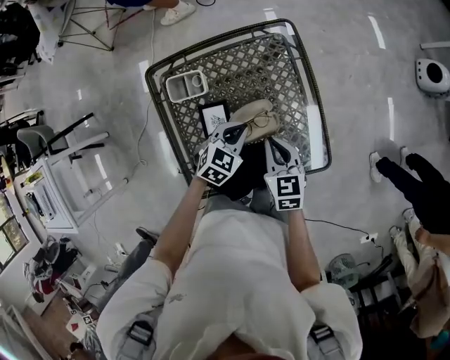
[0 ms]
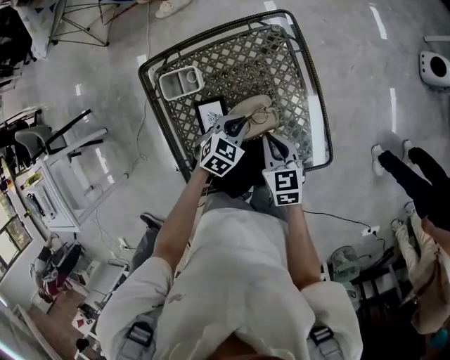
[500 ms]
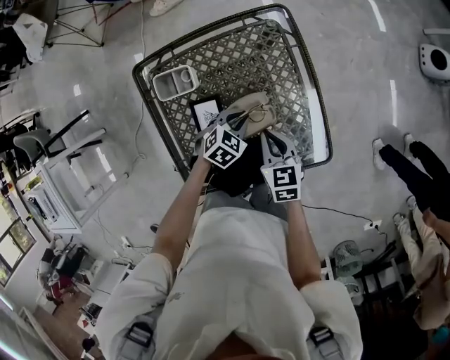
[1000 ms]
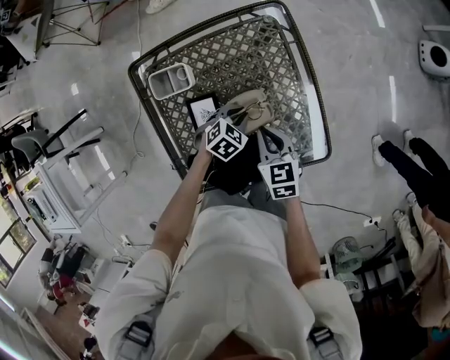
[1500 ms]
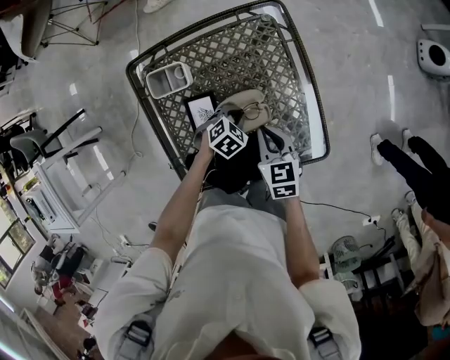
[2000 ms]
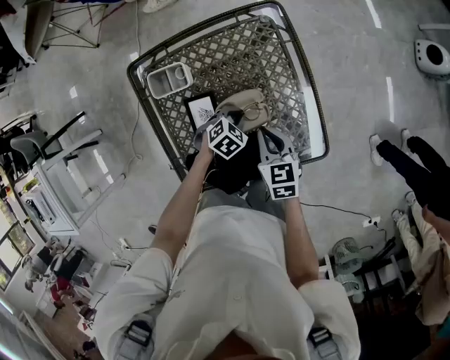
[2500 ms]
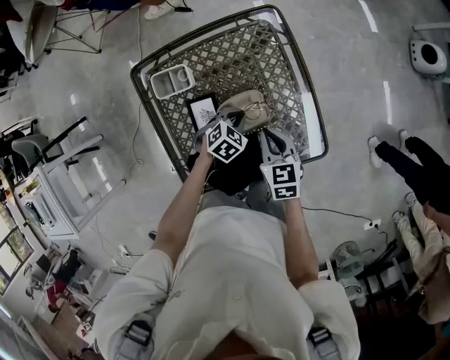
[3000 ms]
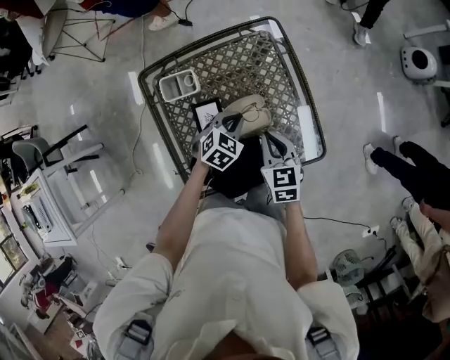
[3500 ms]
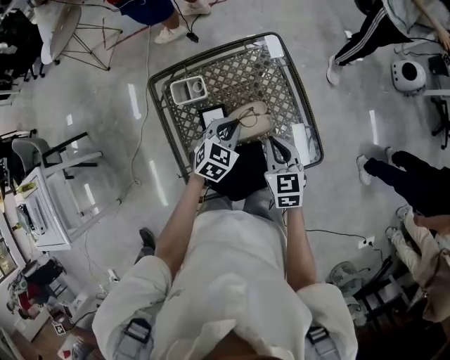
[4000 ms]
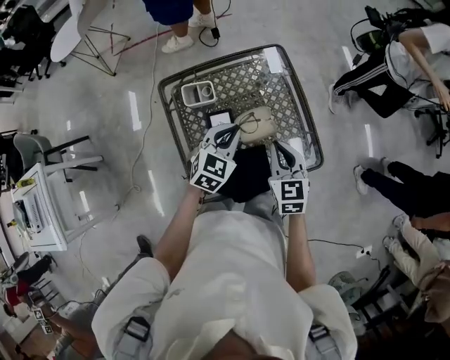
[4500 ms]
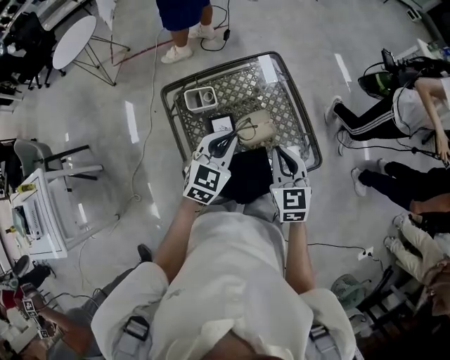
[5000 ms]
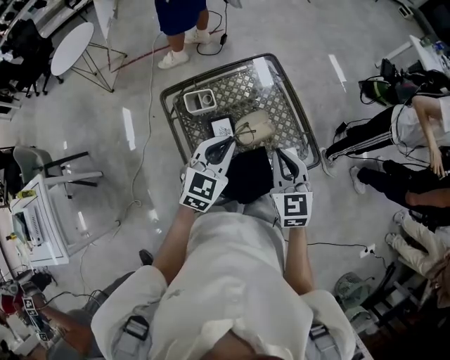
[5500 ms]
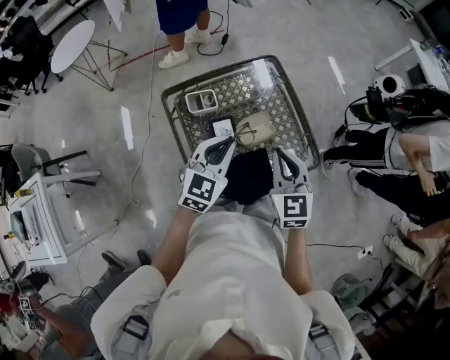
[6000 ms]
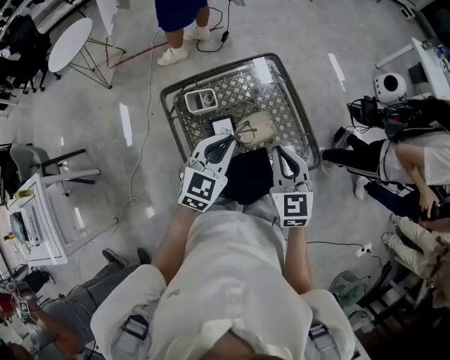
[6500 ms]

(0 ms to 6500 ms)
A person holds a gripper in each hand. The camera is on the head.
0 ms - 2000 ms: The left gripper goes some 15 cm downward, and rotates about 20 degrees.
2000 ms - 4500 ms: The left gripper moves upward, about 25 cm, and tilts its fingers approximately 30 degrees upward. The right gripper heads upward, covering roughly 15 cm, and swivels about 20 degrees.
4500 ms - 6500 ms: The two grippers go roughly 10 cm upward.

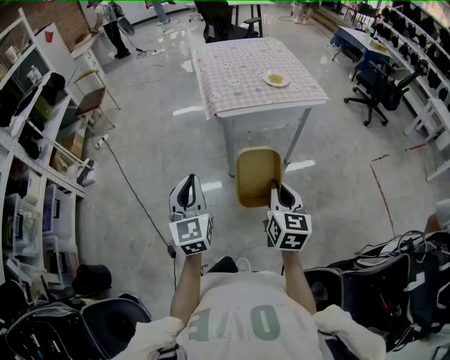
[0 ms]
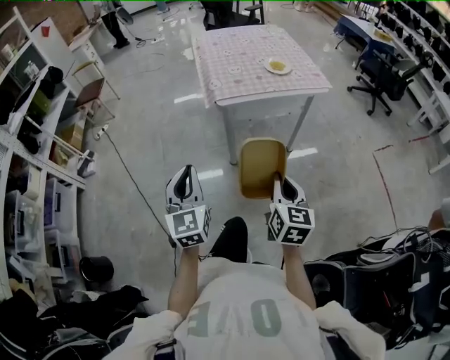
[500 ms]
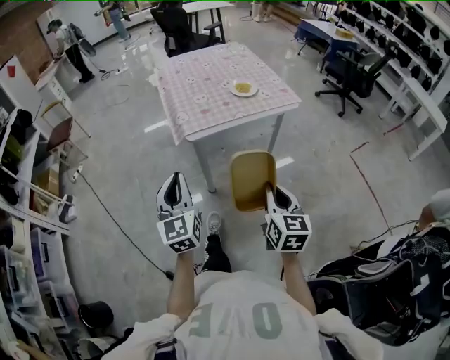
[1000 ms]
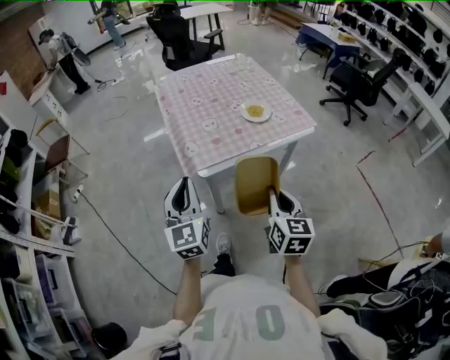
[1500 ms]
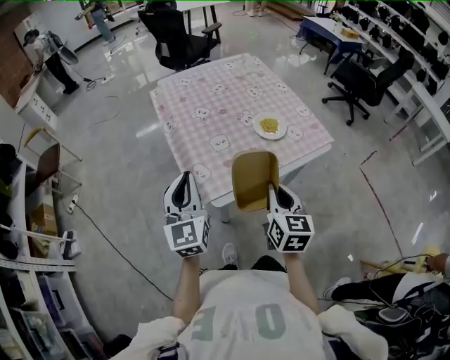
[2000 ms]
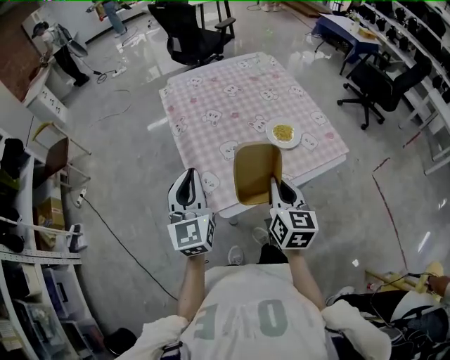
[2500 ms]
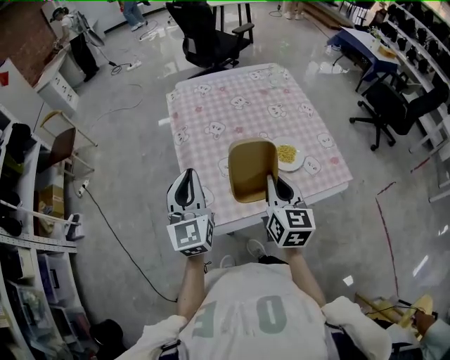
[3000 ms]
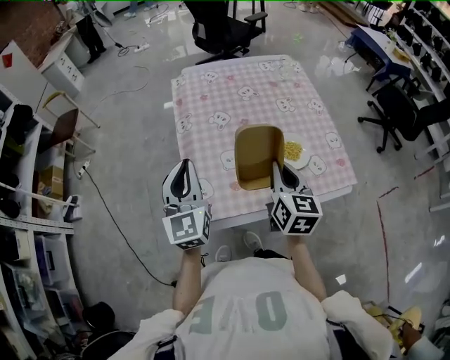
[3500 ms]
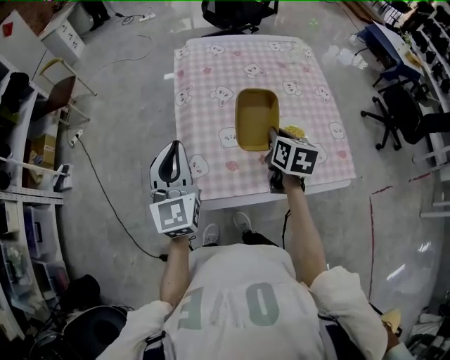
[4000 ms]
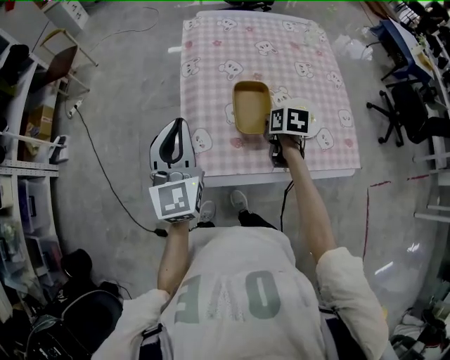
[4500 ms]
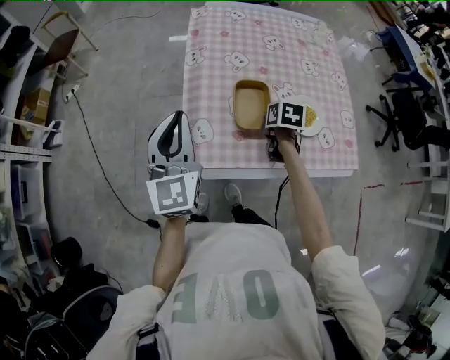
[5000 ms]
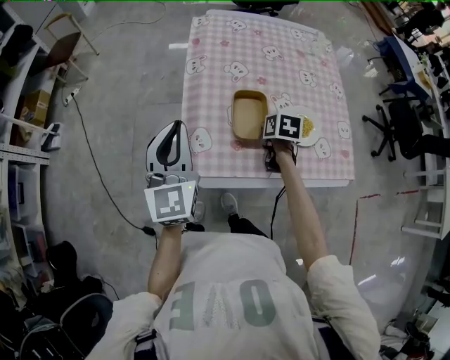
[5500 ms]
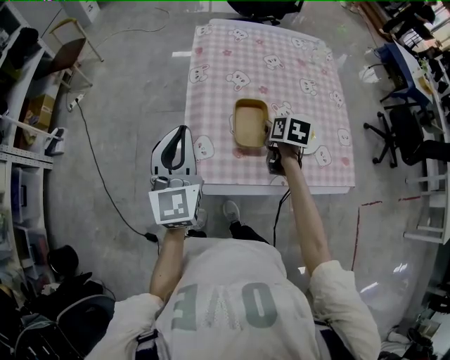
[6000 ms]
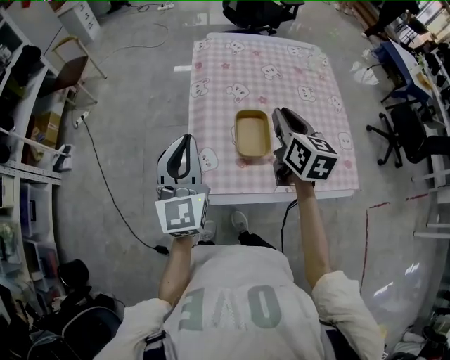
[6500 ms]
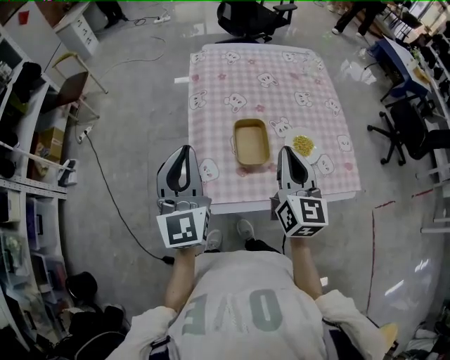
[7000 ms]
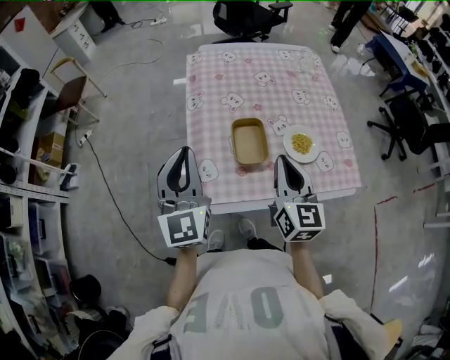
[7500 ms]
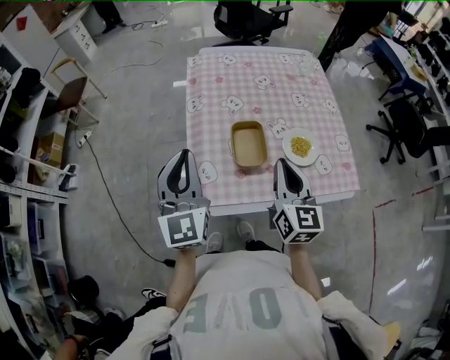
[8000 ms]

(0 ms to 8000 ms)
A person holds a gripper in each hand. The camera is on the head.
0 ms - 2000 ms: The two grippers go some 40 cm forward.
2000 ms - 4000 ms: The left gripper travels forward by some 10 cm; the right gripper travels forward by some 25 cm, and changes its angle by roughly 30 degrees.
4000 ms - 6000 ms: The right gripper goes about 10 cm downward, and opens up.
6000 ms - 8000 ms: The right gripper moves upward and backward, approximately 20 cm, tilts its fingers about 40 degrees upward, and closes up.

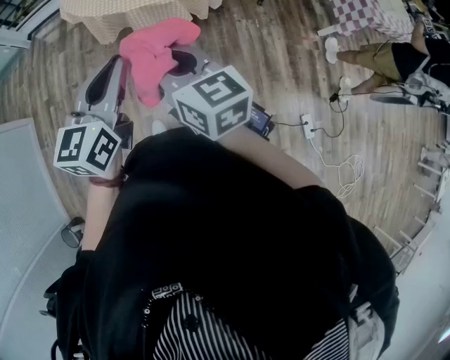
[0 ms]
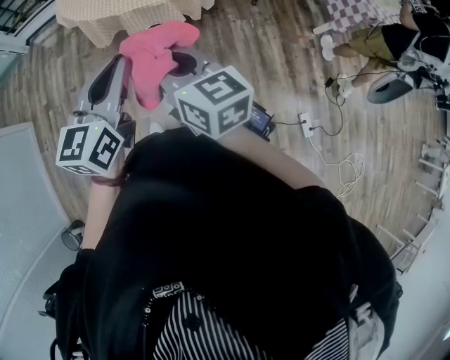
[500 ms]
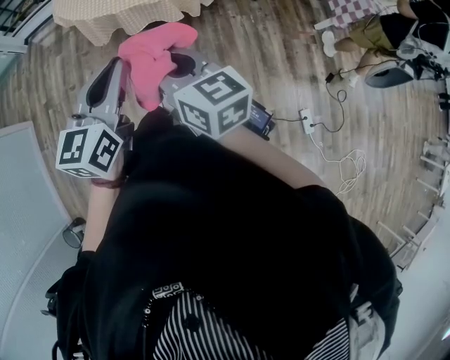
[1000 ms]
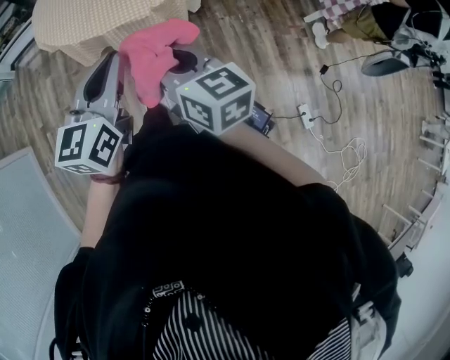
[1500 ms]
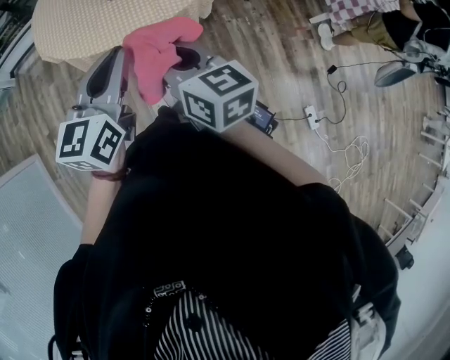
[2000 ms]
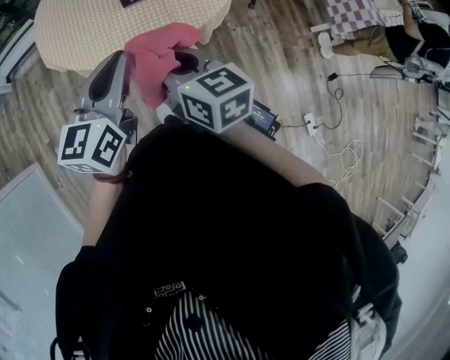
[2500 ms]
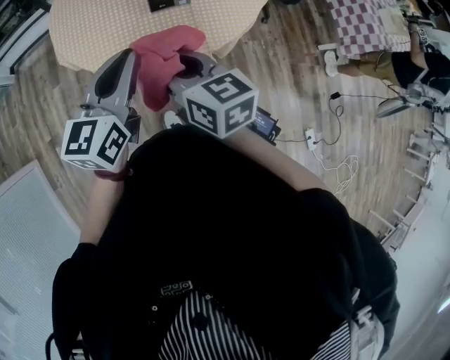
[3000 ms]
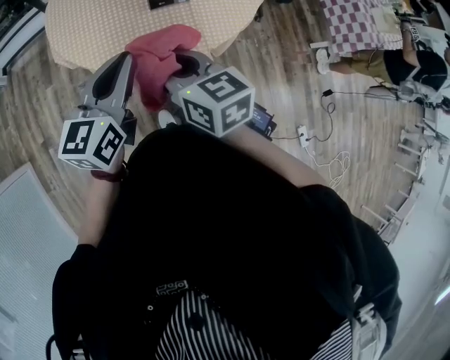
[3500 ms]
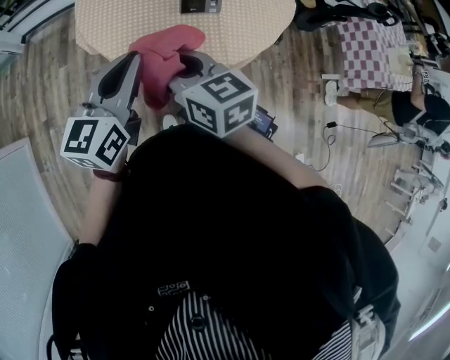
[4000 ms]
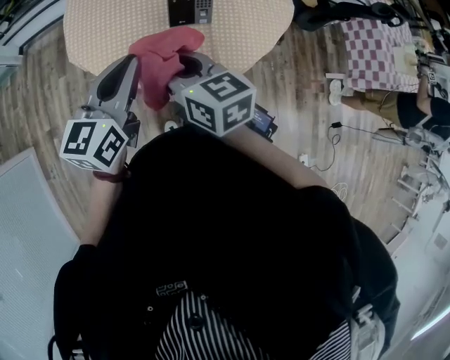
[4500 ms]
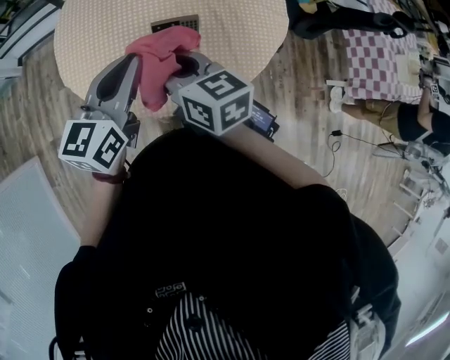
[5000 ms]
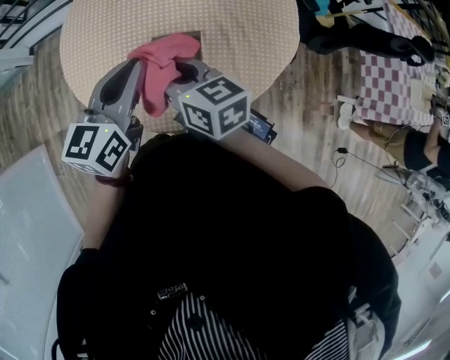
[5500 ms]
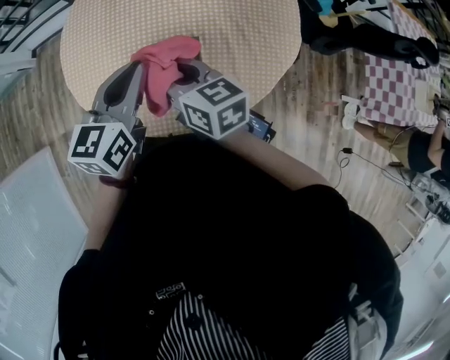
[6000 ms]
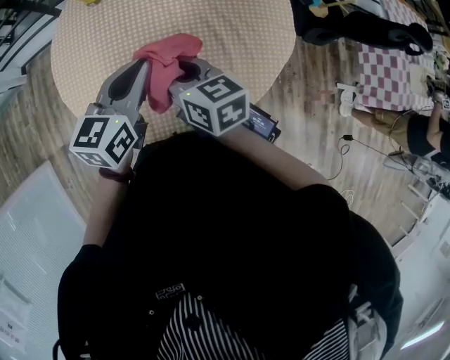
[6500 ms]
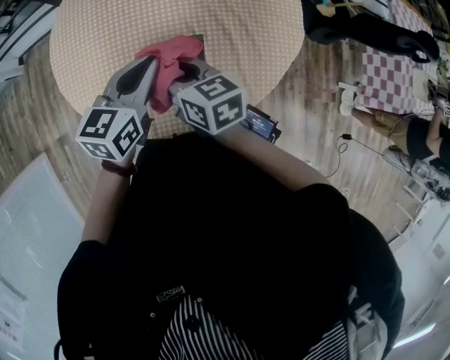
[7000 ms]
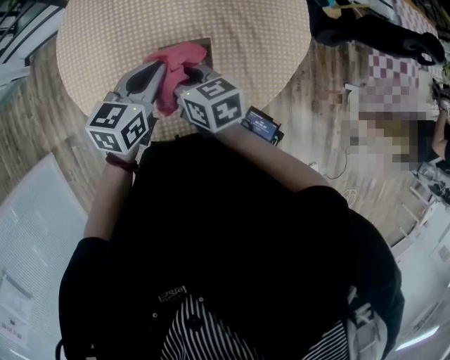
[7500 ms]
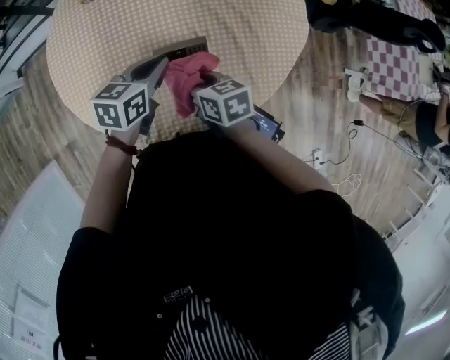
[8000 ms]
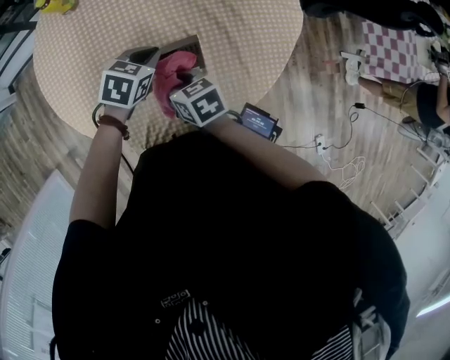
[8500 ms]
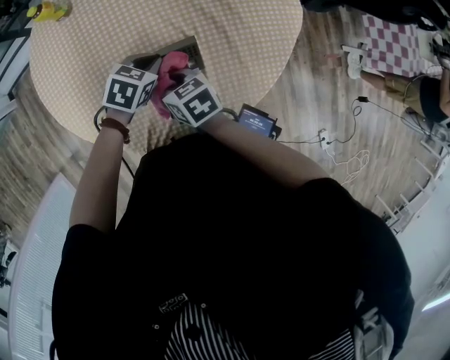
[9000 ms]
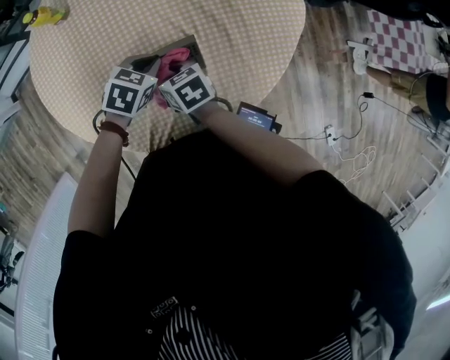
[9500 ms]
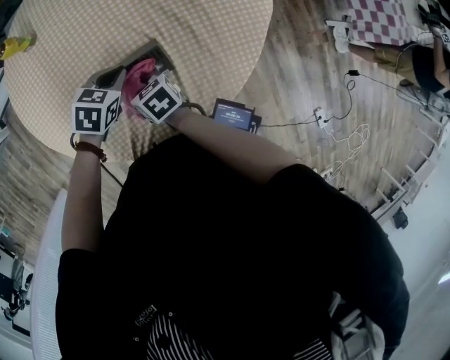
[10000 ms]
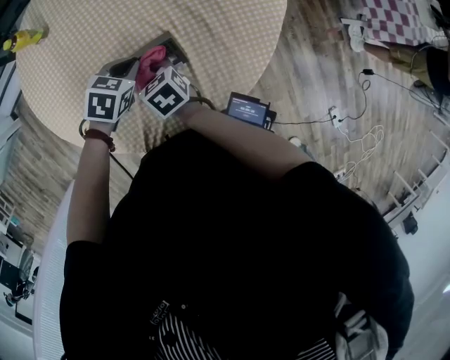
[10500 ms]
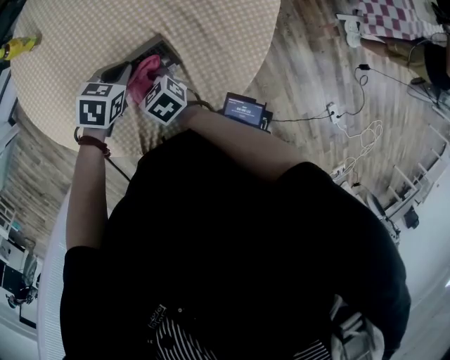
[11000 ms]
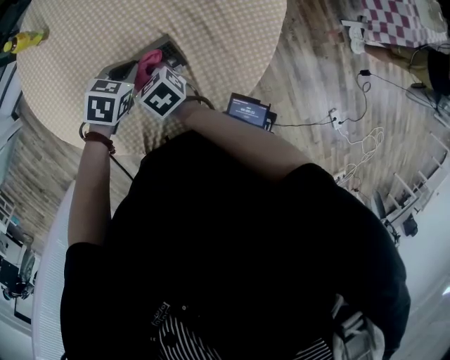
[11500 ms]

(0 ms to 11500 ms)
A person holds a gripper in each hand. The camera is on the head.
0 ms - 2000 ms: Both grippers travel together forward, about 25 cm.
2000 ms - 4000 ms: The two grippers go approximately 35 cm to the left and forward.
4000 ms - 6000 ms: Both grippers travel together forward and to the right, approximately 35 cm.
6000 ms - 7500 ms: The right gripper goes roughly 10 cm downward and to the left, while the left gripper travels downward by roughly 10 cm.
7500 ms - 9500 ms: Both grippers travel together downward, some 20 cm. The left gripper swivels approximately 40 degrees.
9500 ms - 11500 ms: The grippers move only a little.

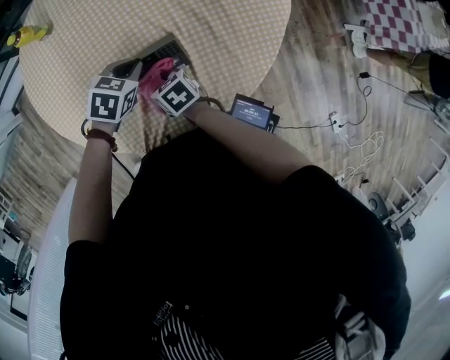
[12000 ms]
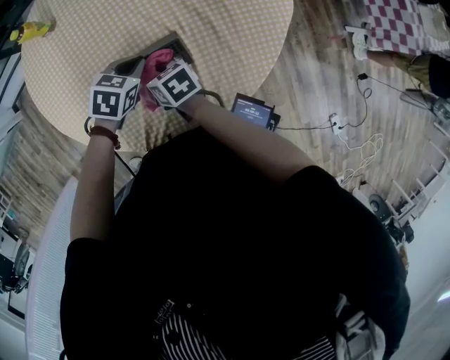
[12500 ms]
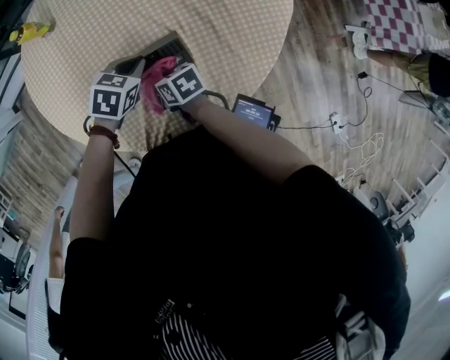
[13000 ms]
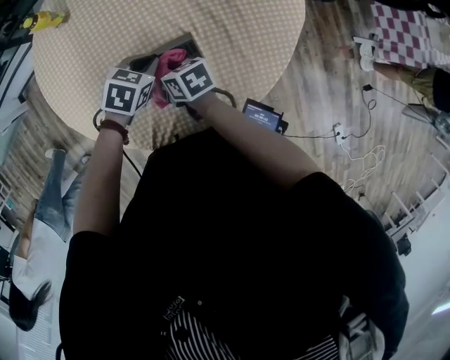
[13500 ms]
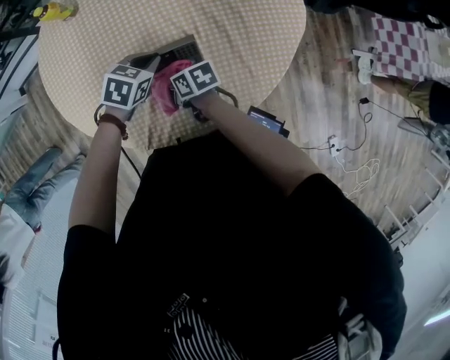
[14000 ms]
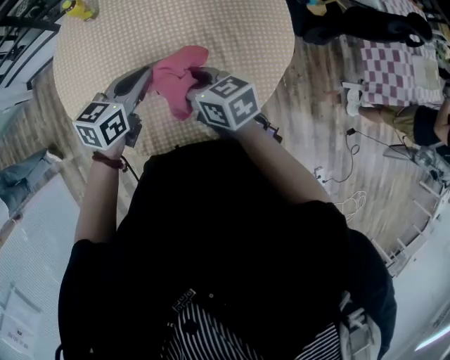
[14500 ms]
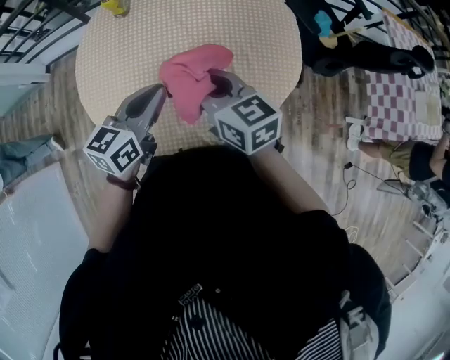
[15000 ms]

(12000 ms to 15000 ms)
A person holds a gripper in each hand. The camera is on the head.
12000 ms - 13500 ms: The grippers stay close to where they were, moving slightly.
13500 ms - 15000 ms: Both grippers travel together upward, roughly 25 cm. The right gripper rotates some 40 degrees; the left gripper tips its fingers upward by approximately 40 degrees.
